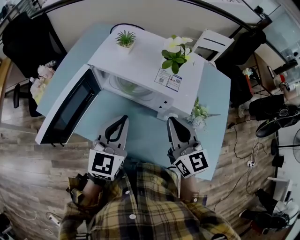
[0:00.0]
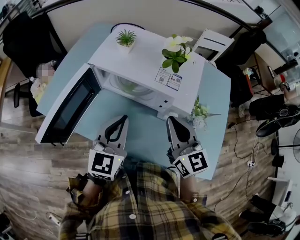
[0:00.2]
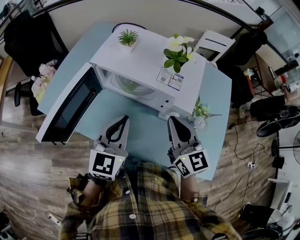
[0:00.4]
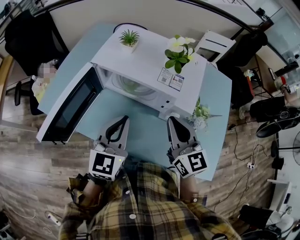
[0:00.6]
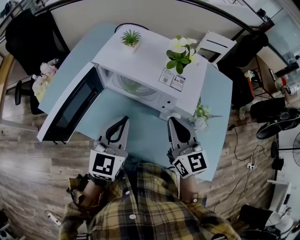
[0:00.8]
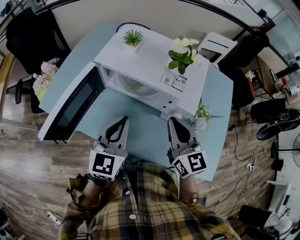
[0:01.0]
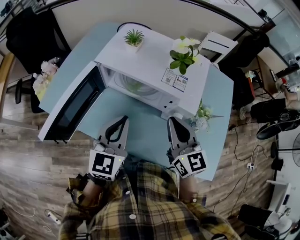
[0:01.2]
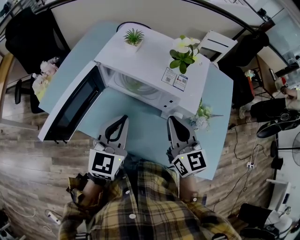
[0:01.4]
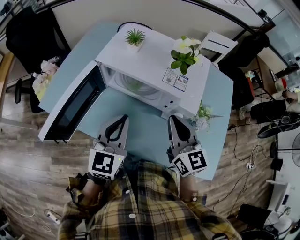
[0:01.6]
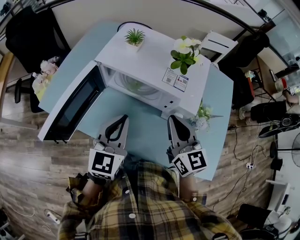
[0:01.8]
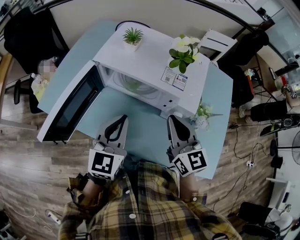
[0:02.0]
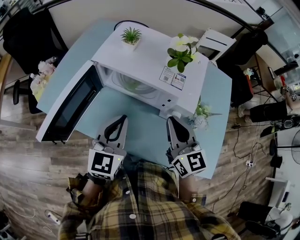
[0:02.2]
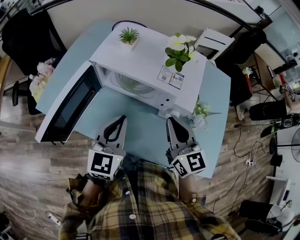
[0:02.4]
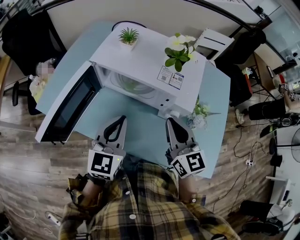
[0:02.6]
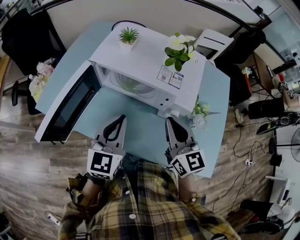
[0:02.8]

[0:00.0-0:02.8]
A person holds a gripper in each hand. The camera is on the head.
0:00.0 to 0:01.4: The grippers make only small movements.
0:01.4 to 0:02.8: Neither gripper changes place.

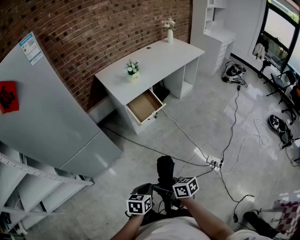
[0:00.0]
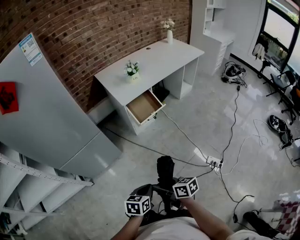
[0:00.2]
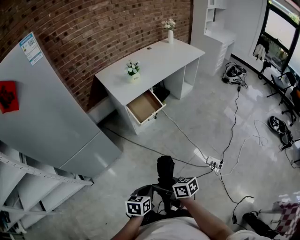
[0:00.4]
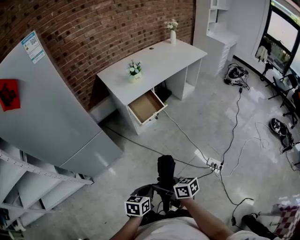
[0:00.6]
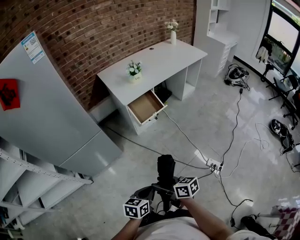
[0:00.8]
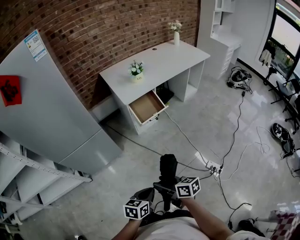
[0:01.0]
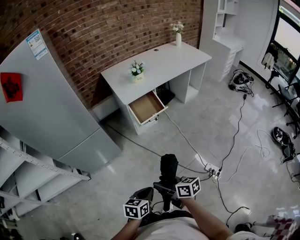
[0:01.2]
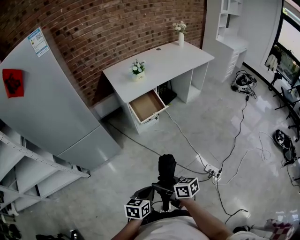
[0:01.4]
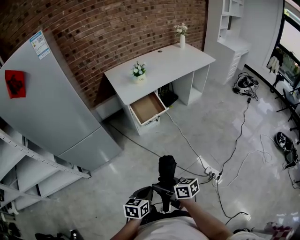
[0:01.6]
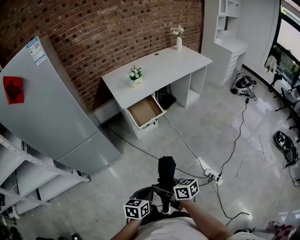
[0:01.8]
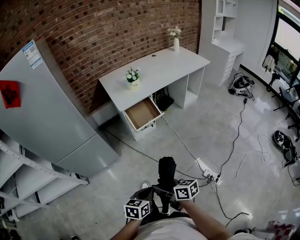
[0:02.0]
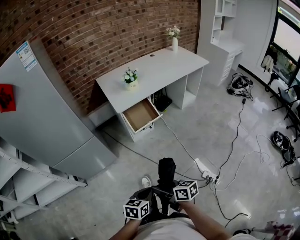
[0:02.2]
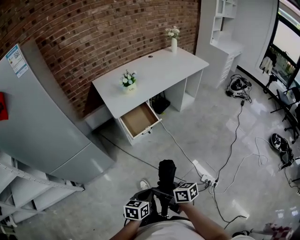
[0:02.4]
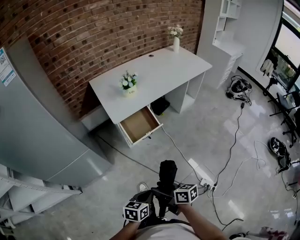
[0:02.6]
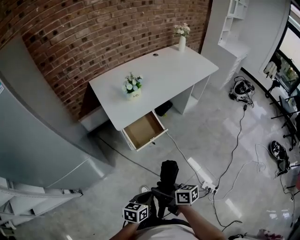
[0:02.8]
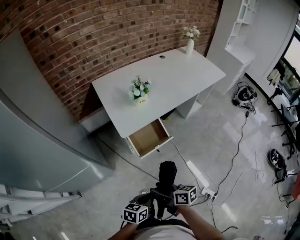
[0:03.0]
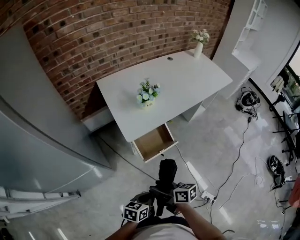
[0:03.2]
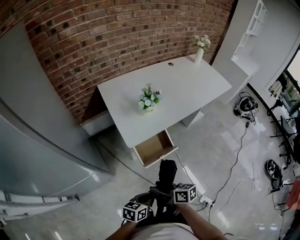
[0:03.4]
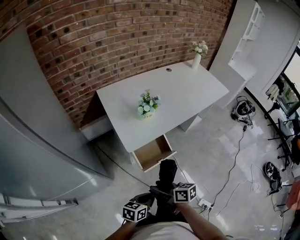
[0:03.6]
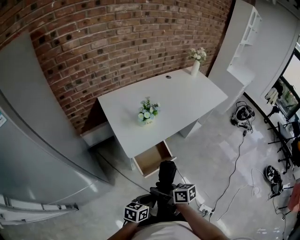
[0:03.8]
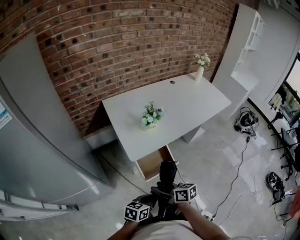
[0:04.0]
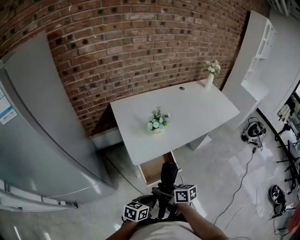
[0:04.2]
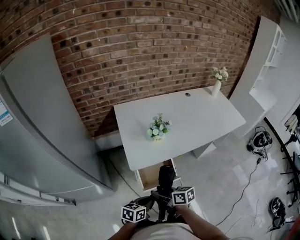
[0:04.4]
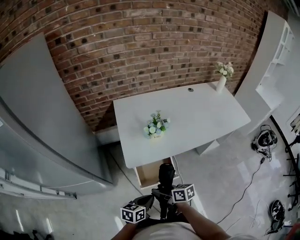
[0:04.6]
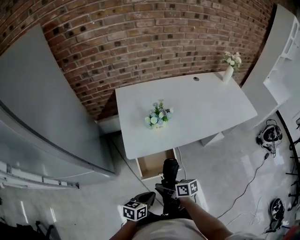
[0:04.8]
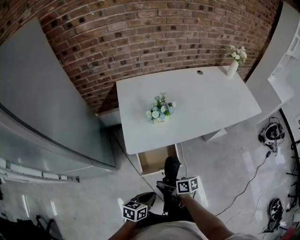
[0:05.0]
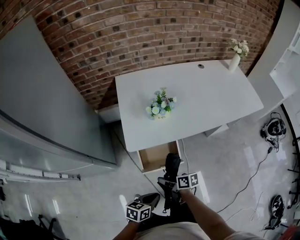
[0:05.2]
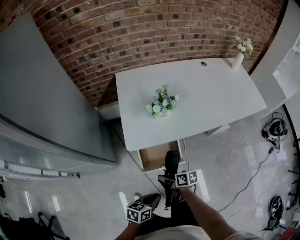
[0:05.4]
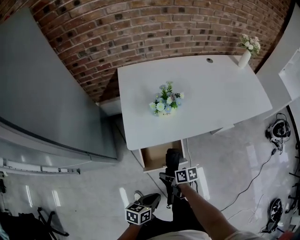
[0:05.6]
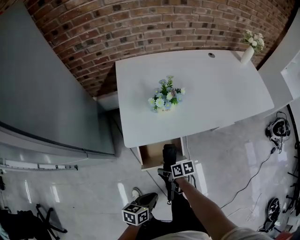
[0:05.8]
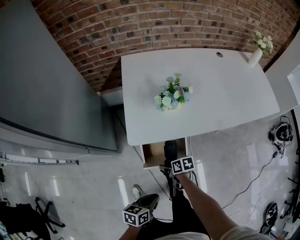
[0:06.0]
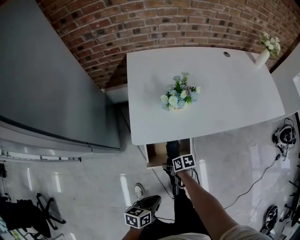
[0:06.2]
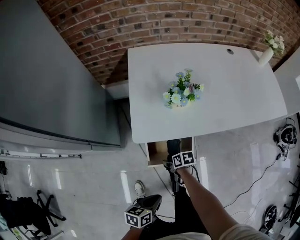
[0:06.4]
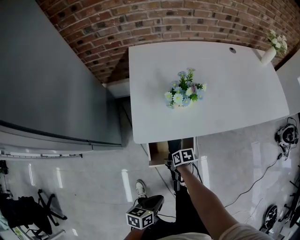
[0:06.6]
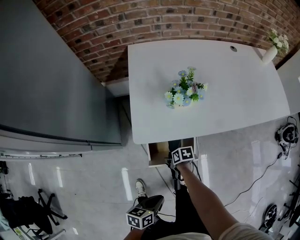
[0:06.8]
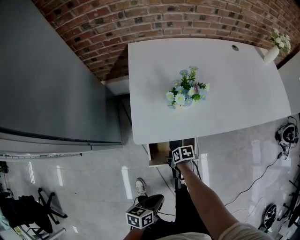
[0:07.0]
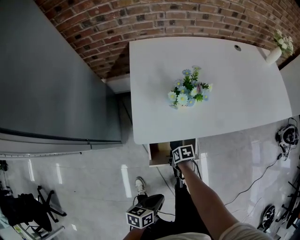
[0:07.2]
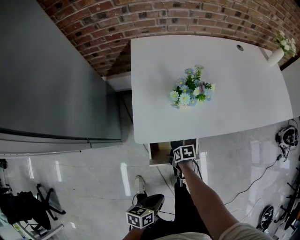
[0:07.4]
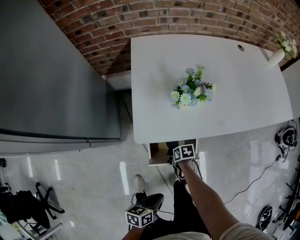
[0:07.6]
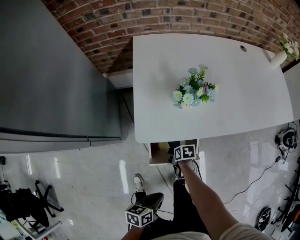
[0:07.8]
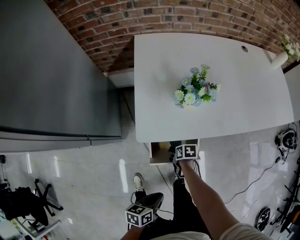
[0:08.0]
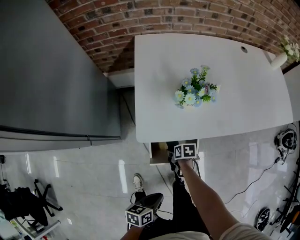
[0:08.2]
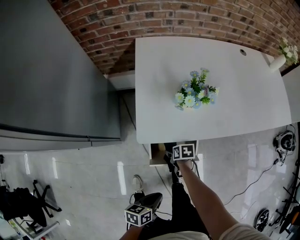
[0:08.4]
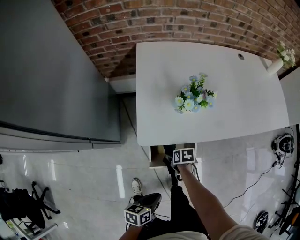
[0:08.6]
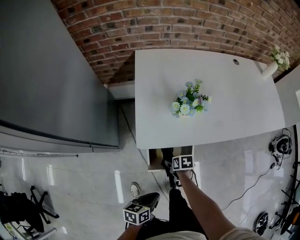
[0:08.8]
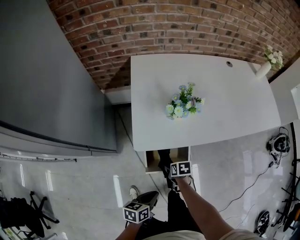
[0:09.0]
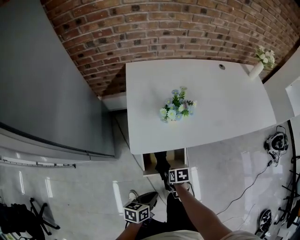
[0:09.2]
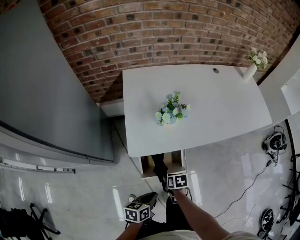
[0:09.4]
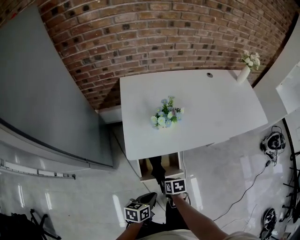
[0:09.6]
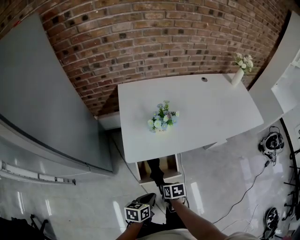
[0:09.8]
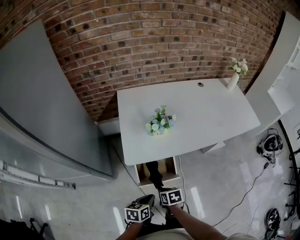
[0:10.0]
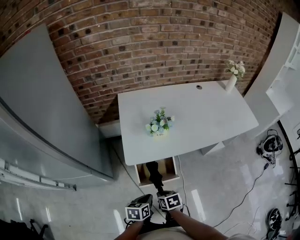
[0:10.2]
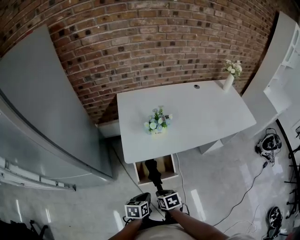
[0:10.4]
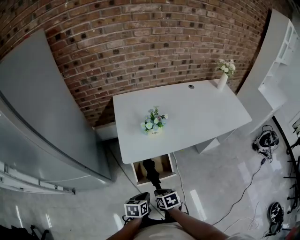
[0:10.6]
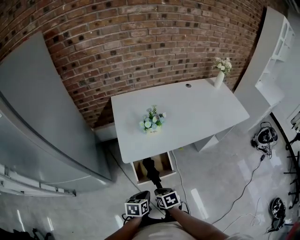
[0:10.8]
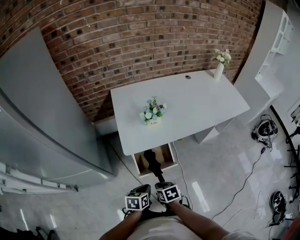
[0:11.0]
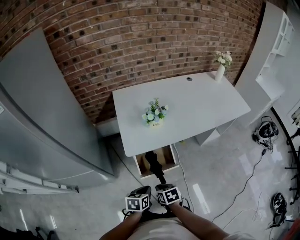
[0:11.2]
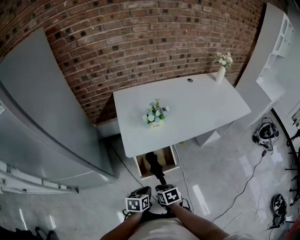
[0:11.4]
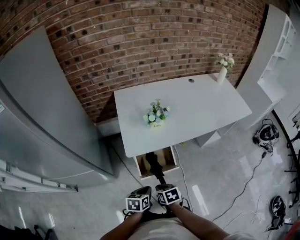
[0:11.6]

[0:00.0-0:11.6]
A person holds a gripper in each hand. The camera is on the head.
0:00.0 to 0:01.4: Both grippers travel together to the right, about 5 cm.
0:01.4 to 0:02.8: The two grippers go some 25 cm forward.
0:02.8 to 0:04.4: Both grippers travel together forward, approximately 25 cm.
0:04.4 to 0:05.8: The left gripper shifts roughly 10 cm downward, while the right gripper is displaced downward by some 20 cm, and swivels some 30 degrees.
0:05.8 to 0:07.2: The right gripper shifts about 10 cm downward, and turns by roughly 20 degrees.
0:07.2 to 0:08.8: The right gripper goes about 5 cm upward.
0:08.8 to 0:10.2: The right gripper goes roughly 20 cm upward and backward, and closes its fingers, while the left gripper shifts approximately 5 cm upward.
0:10.2 to 0:11.6: The grippers move only a little.

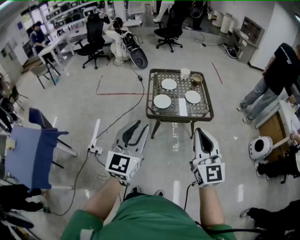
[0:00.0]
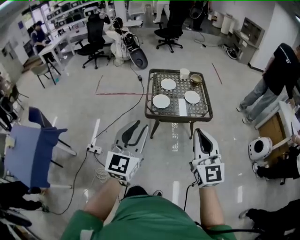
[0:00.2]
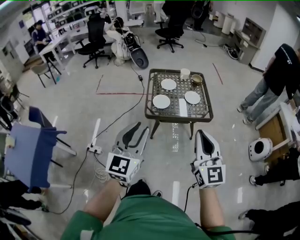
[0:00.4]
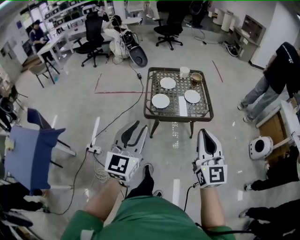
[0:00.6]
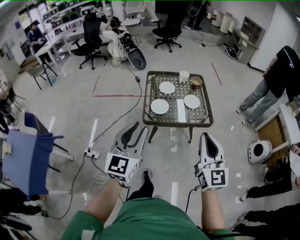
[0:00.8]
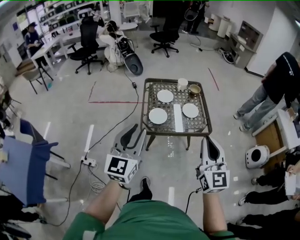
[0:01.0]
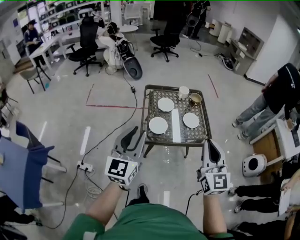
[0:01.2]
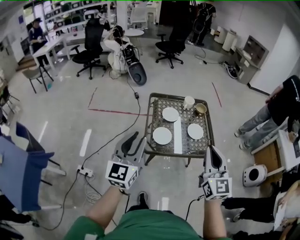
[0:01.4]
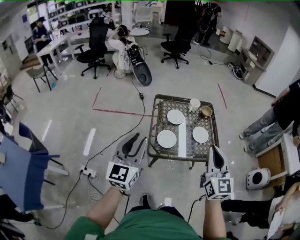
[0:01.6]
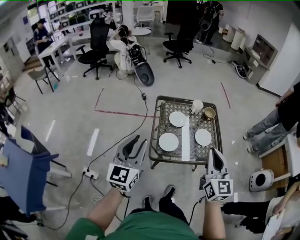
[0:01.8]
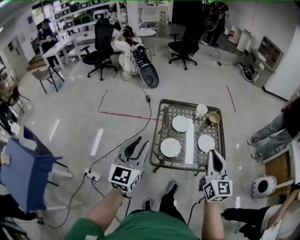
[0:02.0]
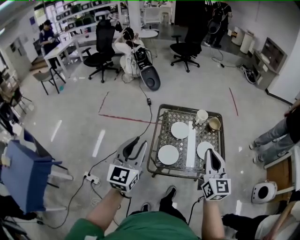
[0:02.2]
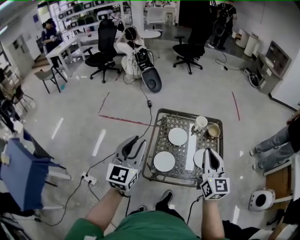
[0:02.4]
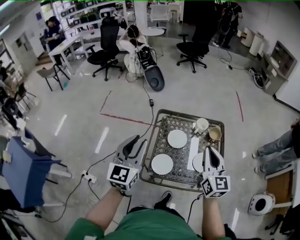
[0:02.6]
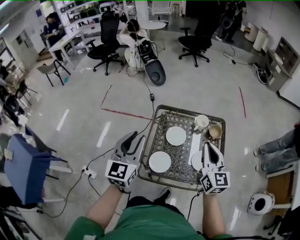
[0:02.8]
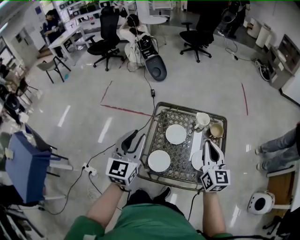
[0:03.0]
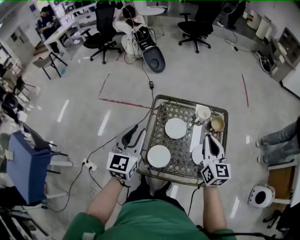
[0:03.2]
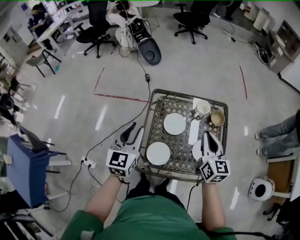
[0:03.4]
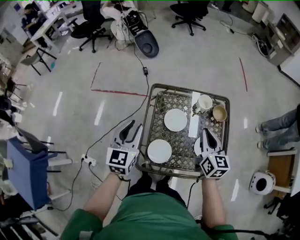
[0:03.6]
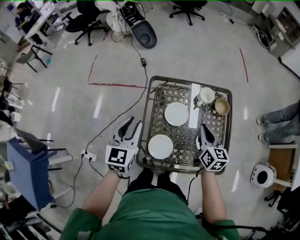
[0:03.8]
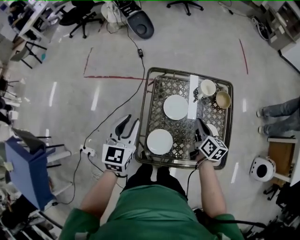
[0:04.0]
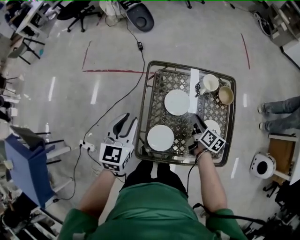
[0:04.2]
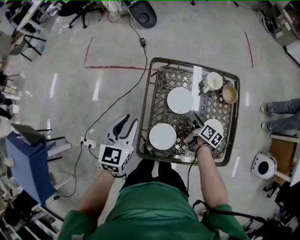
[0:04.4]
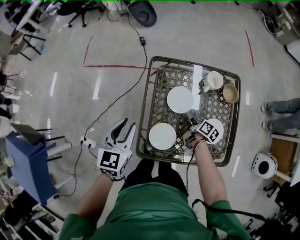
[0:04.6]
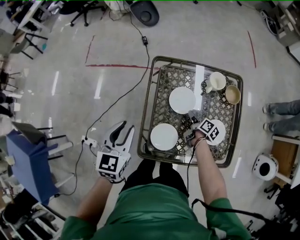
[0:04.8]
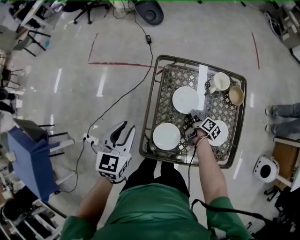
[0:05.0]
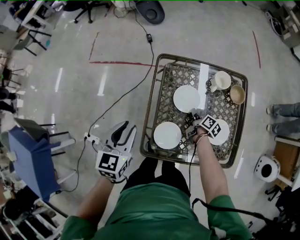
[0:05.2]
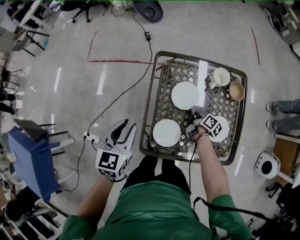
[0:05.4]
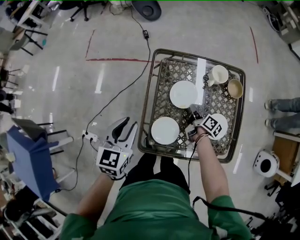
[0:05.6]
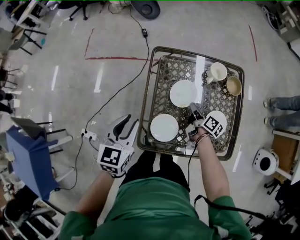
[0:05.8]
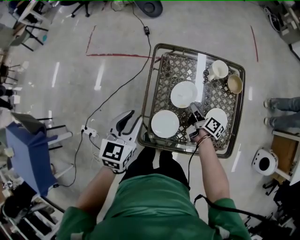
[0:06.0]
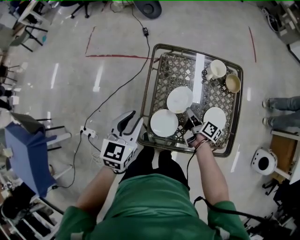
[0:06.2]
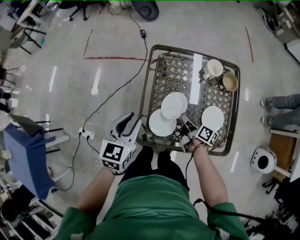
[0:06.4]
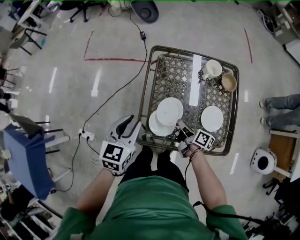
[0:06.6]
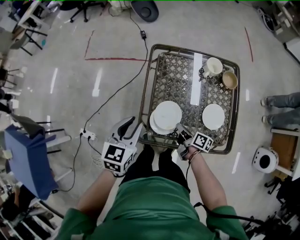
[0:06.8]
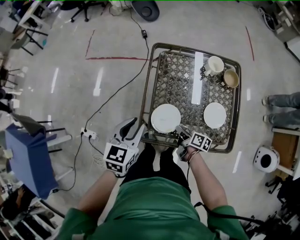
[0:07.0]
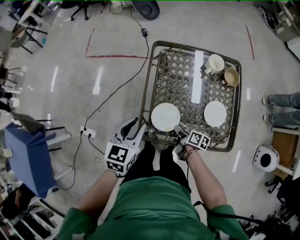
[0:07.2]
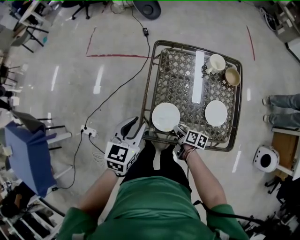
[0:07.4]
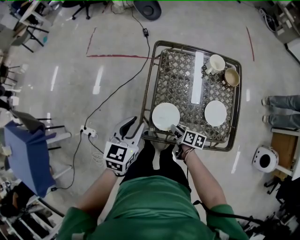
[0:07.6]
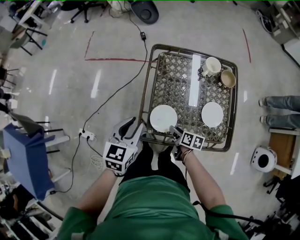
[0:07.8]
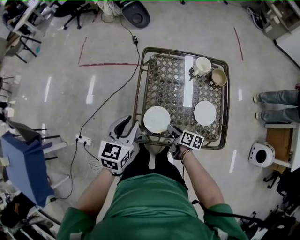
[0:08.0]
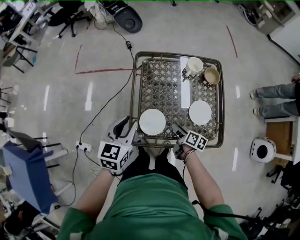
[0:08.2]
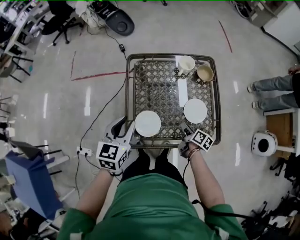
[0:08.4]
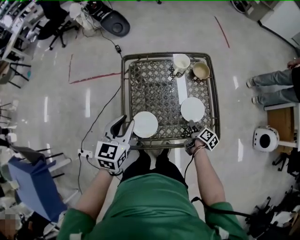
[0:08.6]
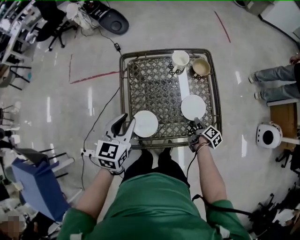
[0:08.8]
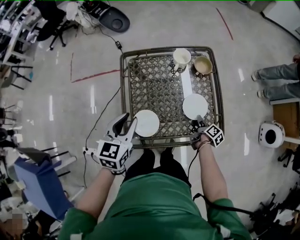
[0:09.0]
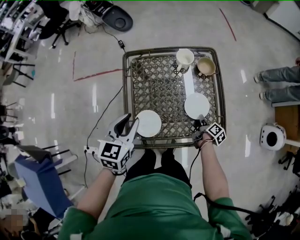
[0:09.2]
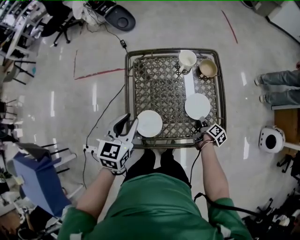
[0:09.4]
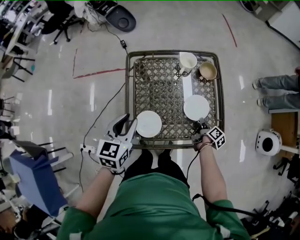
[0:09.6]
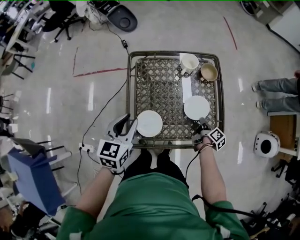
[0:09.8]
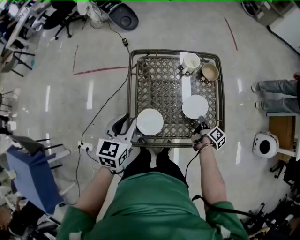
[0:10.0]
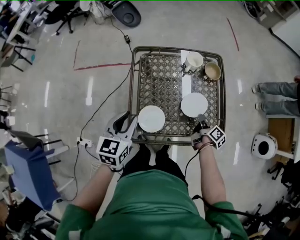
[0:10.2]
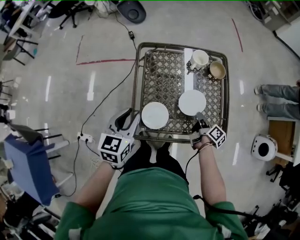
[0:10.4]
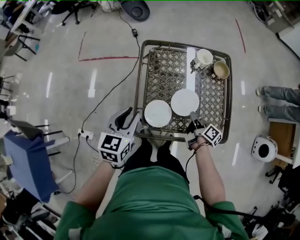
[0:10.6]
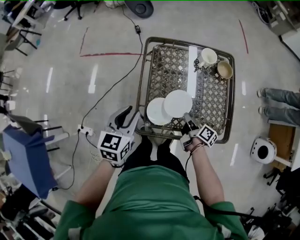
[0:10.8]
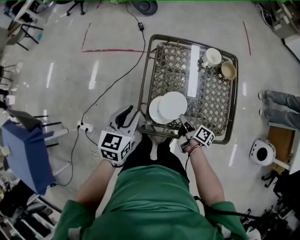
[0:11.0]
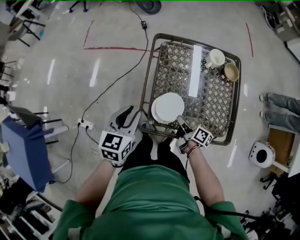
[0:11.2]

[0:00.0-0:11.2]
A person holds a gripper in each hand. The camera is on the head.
0:00.0 to 0:01.6: The two grippers go about 25 cm forward.
0:01.6 to 0:03.2: Both grippers travel together forward, some 30 cm.
0:03.2 to 0:04.8: The right gripper travels downward by some 40 cm, twists about 60 degrees clockwise, seen from behind, and opens up, while the left gripper heads downward and to the left, covering approximately 15 cm.
0:04.8 to 0:06.4: The right gripper is displaced backward, upward and to the left by about 10 cm, and closes its fingers, while the left gripper moves about 5 cm.
0:06.4 to 0:08.0: The right gripper is displaced backward by roughly 10 cm, and opens up.
0:08.0 to 0:09.6: The right gripper goes some 25 cm to the right, turns by roughly 40 degrees, and closes up. Meanwhile the left gripper shifts approximately 10 cm to the right and forward.
0:09.6 to 0:11.2: The right gripper shifts roughly 25 cm to the left, and changes its angle by approximately 40 degrees. Meanwhile the left gripper is displaced to the left and backward by some 10 cm.
